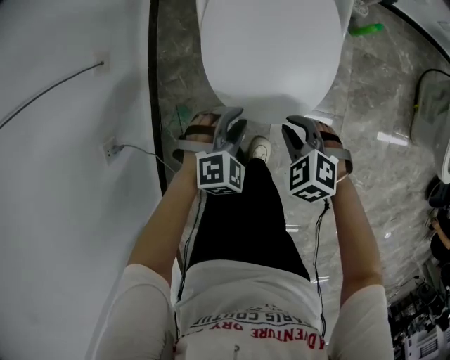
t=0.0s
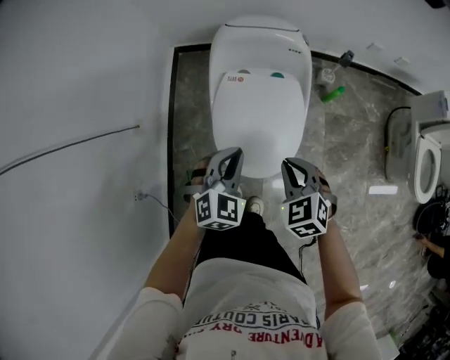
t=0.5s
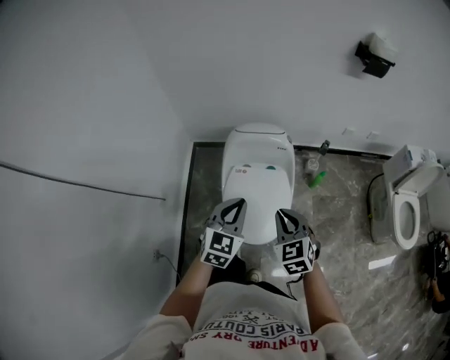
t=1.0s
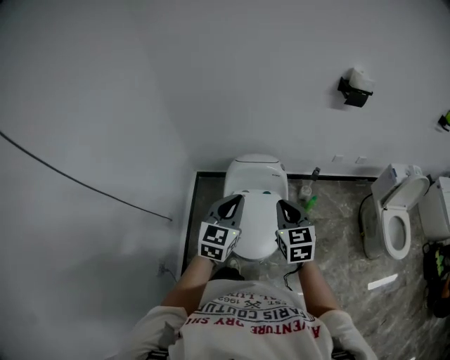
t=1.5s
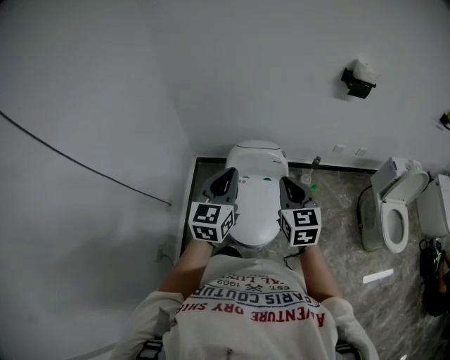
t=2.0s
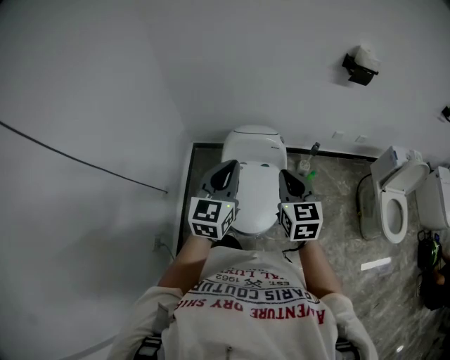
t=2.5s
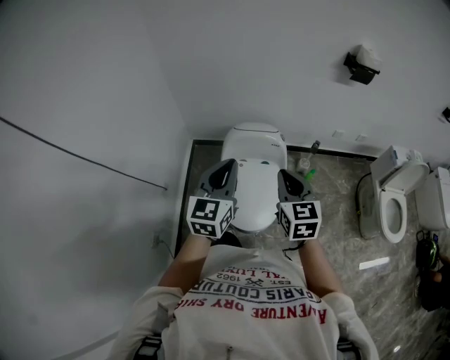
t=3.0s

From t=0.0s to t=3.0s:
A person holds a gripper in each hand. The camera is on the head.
From t=0.0s to t=1.5s: Both grippers move upward, roughly 60 cm. The left gripper points its fingers roughly 50 degrees further upward, and closes its fingers. Meanwhile the right gripper tips its fingers upward by some 40 degrees.

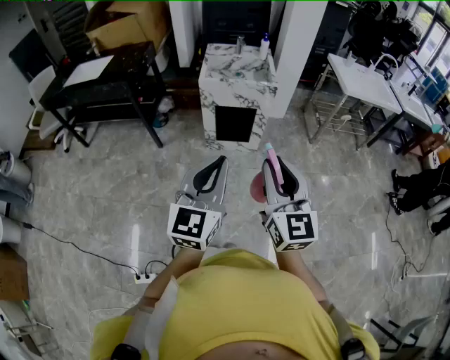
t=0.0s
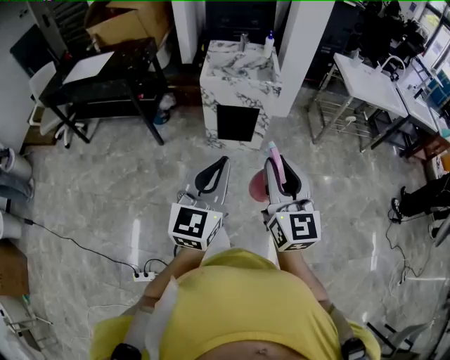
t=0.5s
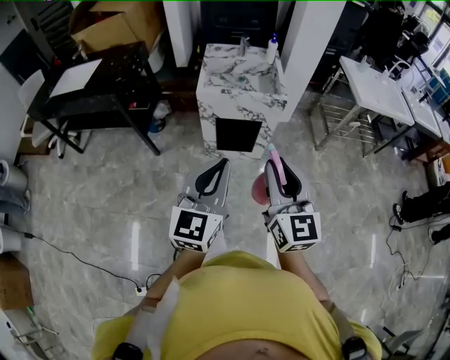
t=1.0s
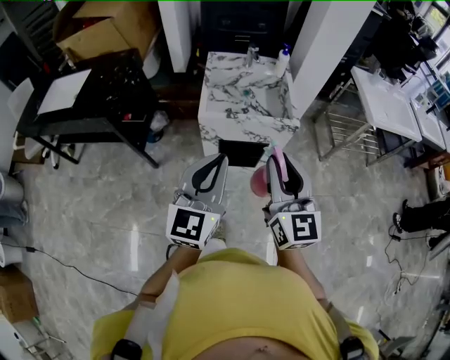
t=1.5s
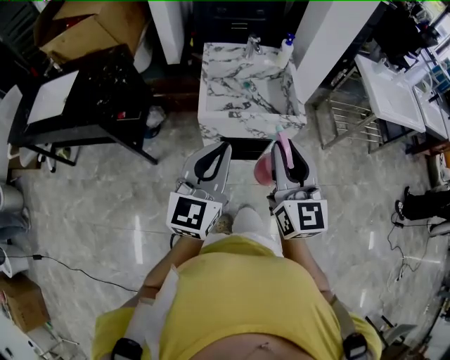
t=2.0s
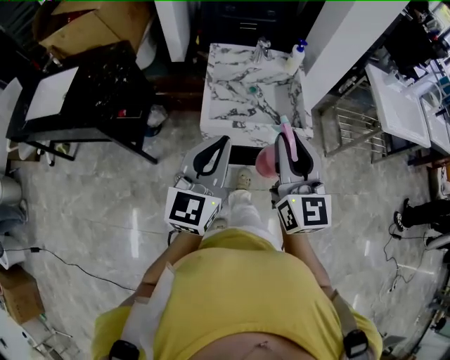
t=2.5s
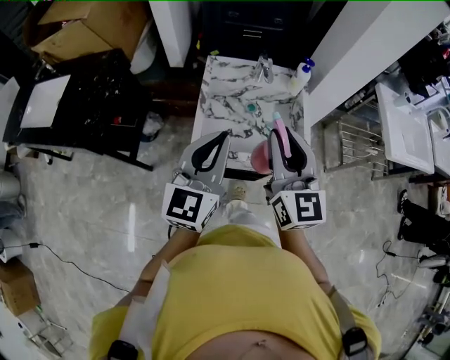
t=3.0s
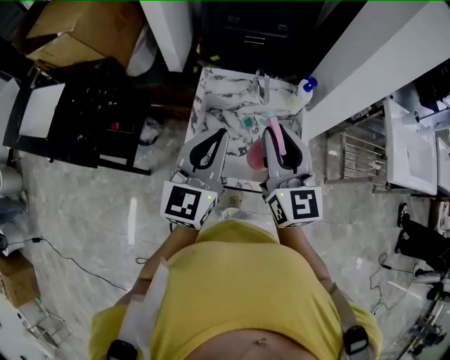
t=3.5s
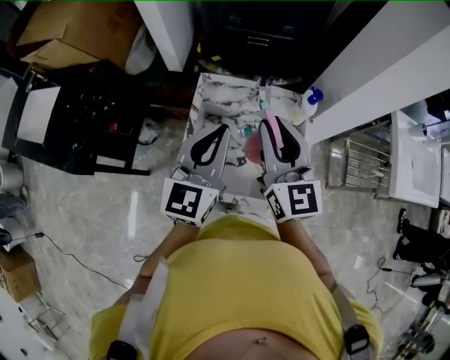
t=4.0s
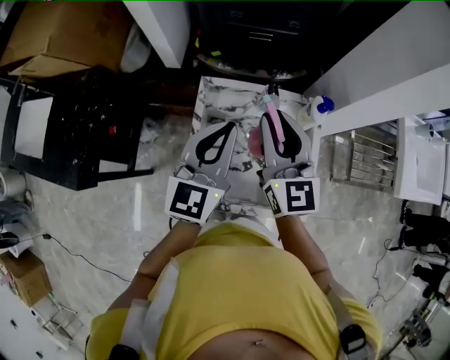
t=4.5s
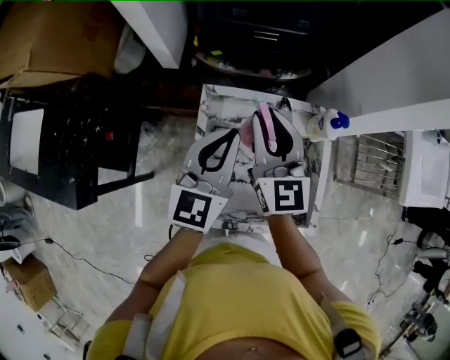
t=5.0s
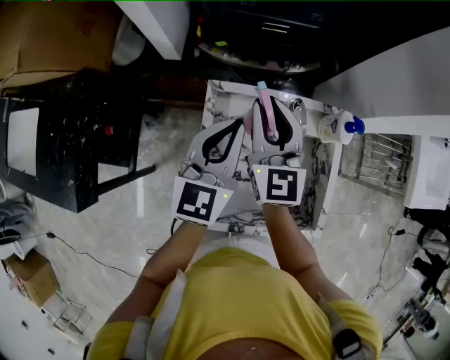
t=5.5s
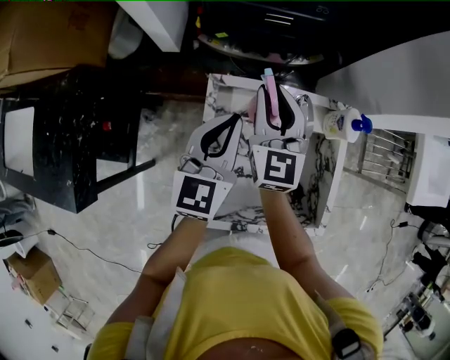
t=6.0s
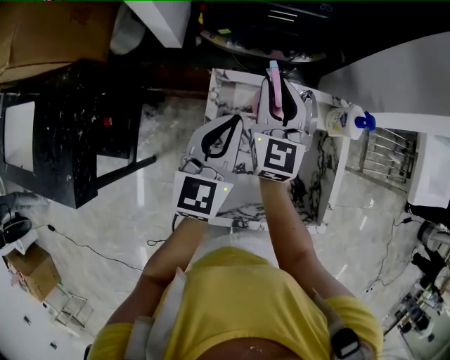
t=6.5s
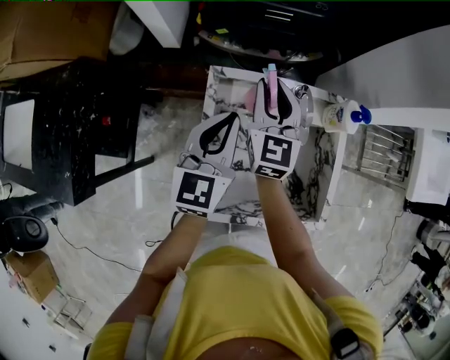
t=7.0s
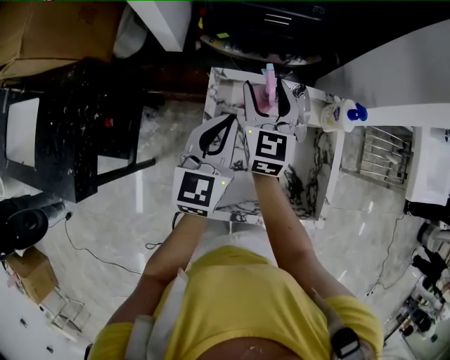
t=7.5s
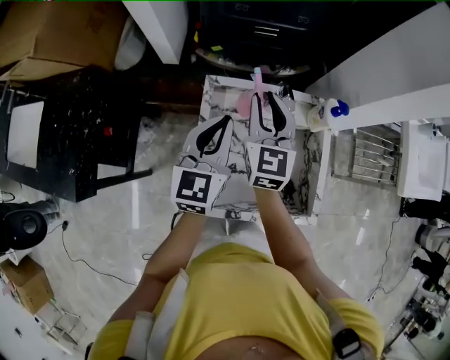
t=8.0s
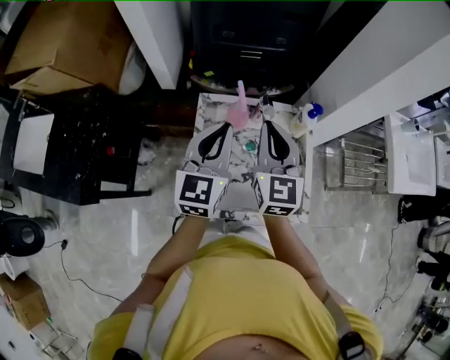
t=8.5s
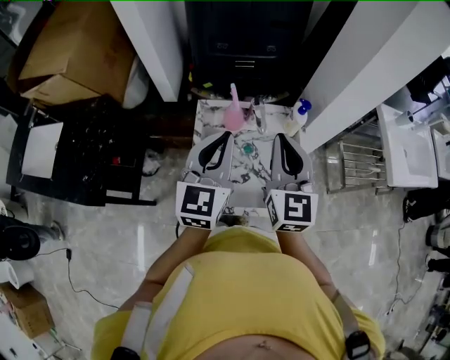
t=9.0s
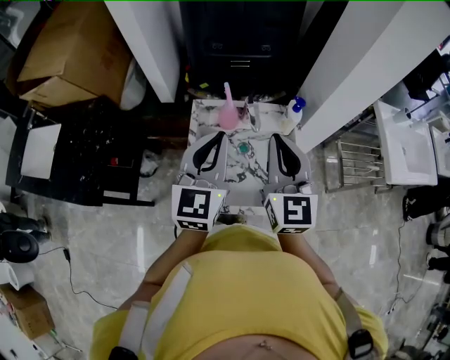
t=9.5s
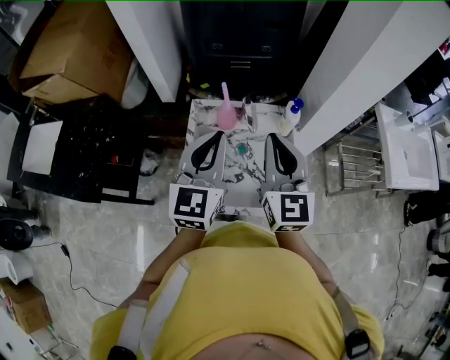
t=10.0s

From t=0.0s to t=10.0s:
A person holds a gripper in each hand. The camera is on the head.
From t=0.0s to t=2.0s: The two grippers travel together, forward, roughly 50 cm.
From t=2.0s to t=4.0s: The two grippers go some 40 cm forward.
From t=4.0s to t=6.0s: The grippers both shift forward, downward and to the left by roughly 25 cm.
From t=6.0s to t=8.0s: The two grippers go approximately 5 cm backward. The right gripper opens, then closes again.
From t=8.0s to t=10.0s: The right gripper moves backward, upward and to the right, about 25 cm, and closes its fingers; the left gripper is displaced upward, backward and to the right by roughly 20 cm.

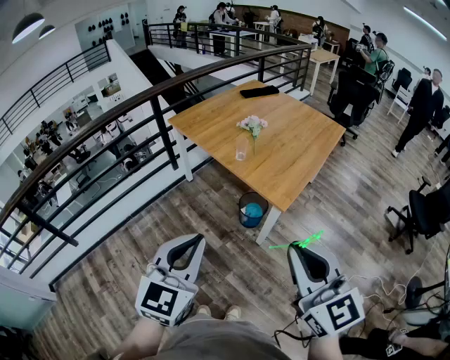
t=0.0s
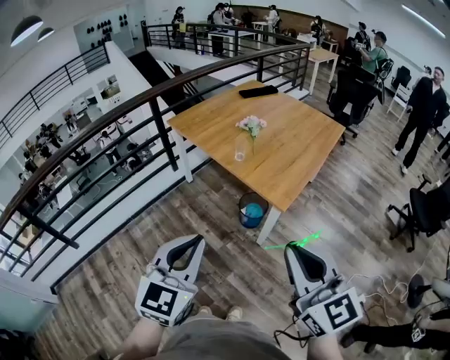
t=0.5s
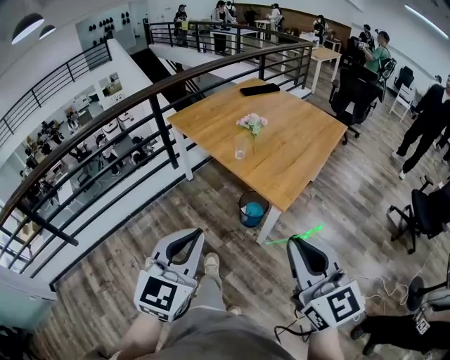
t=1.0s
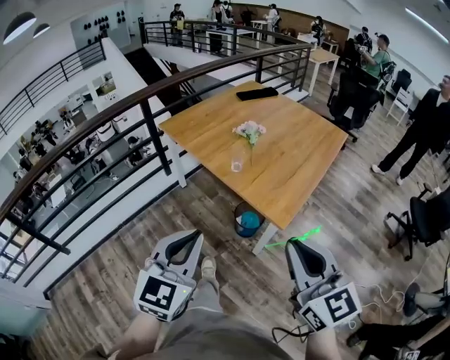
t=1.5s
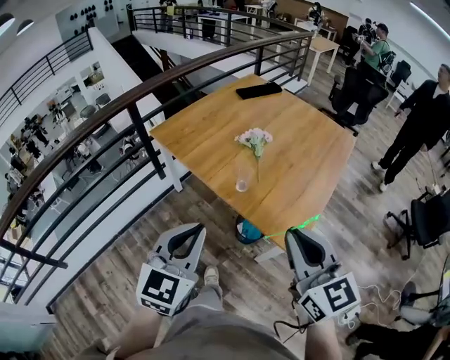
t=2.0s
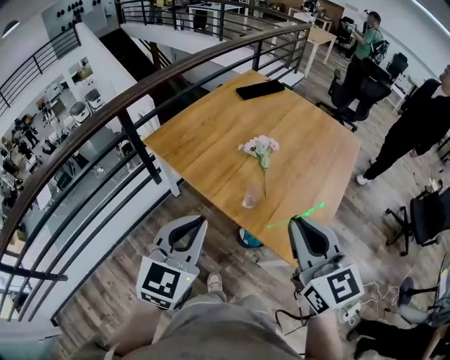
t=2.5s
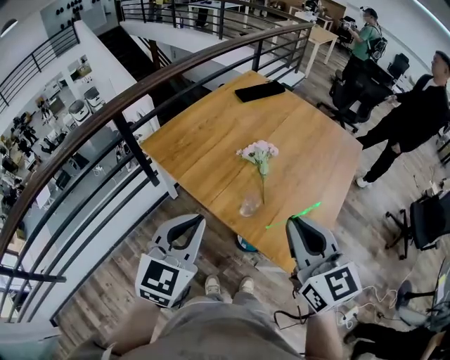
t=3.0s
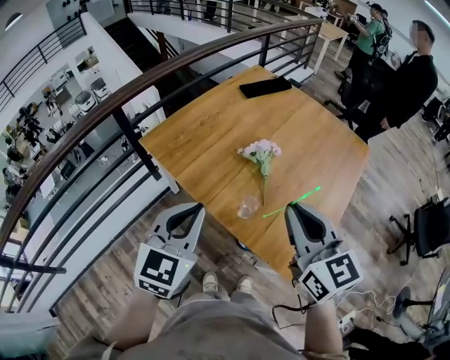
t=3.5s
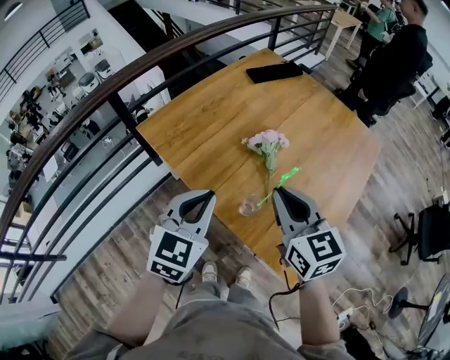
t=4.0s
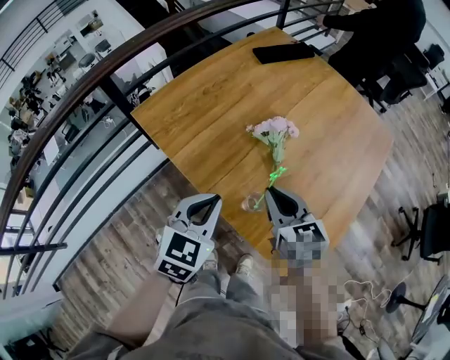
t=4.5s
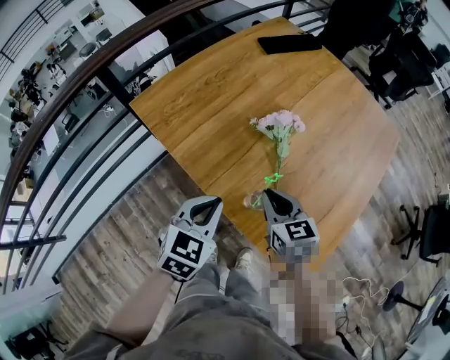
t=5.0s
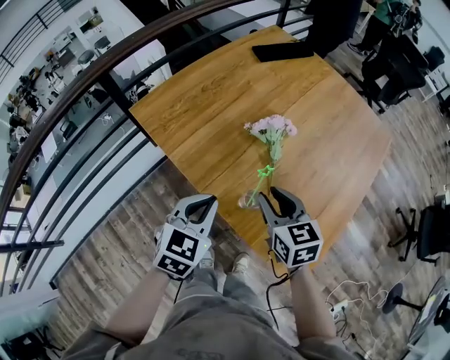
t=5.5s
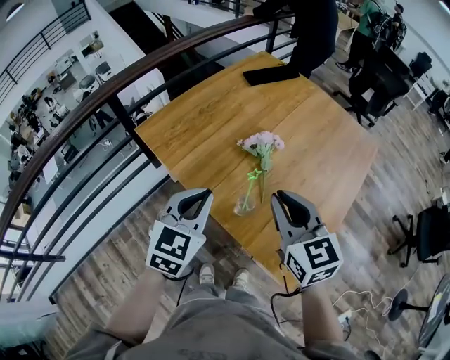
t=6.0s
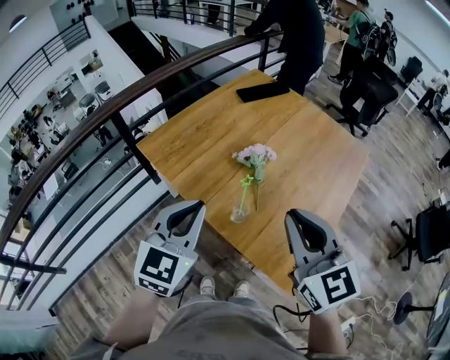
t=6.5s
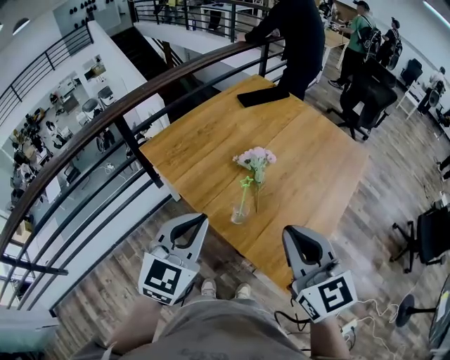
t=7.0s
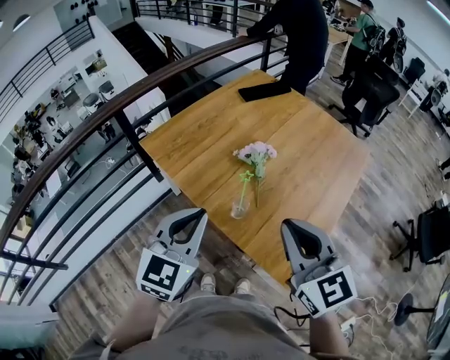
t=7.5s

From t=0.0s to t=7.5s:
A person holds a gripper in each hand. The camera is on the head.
From t=0.0s to t=2.0s: Both grippers travel together forward, roughly 30 cm.
From t=2.0s to t=4.0s: The two grippers go about 25 cm forward.
From t=4.0s to t=5.5s: Both grippers move downward, about 10 cm. The right gripper opens its fingers.
From t=5.5s to t=7.5s: The grippers both shift upward and backward by approximately 20 cm. The left gripper rotates about 20 degrees; the right gripper swivels roughly 30 degrees, and closes up.

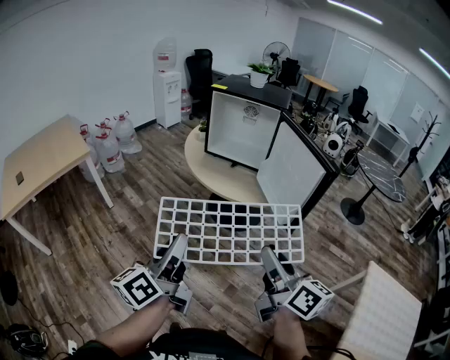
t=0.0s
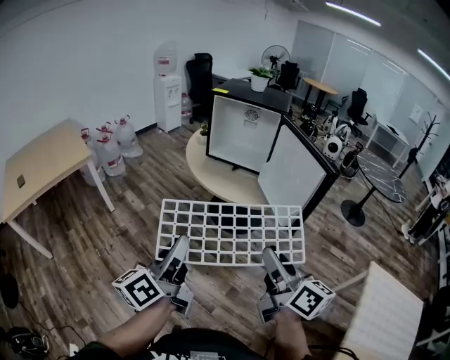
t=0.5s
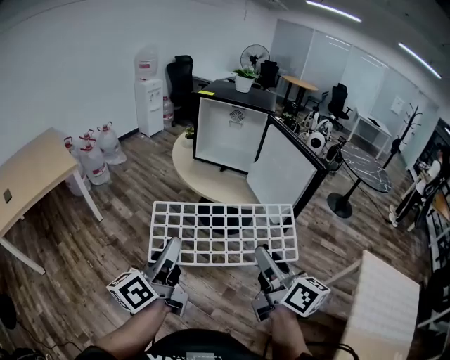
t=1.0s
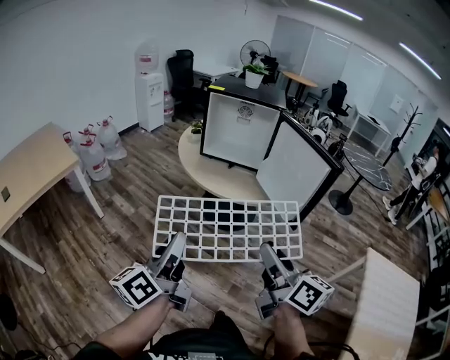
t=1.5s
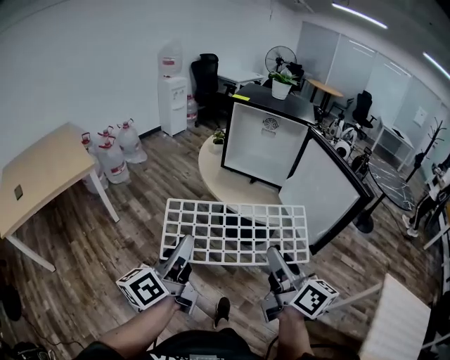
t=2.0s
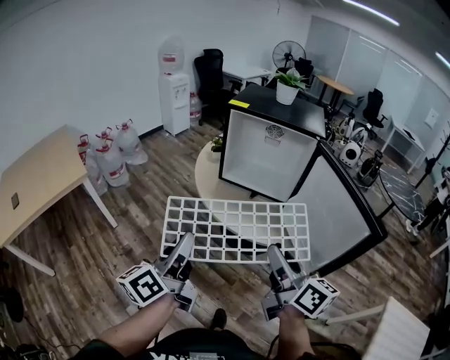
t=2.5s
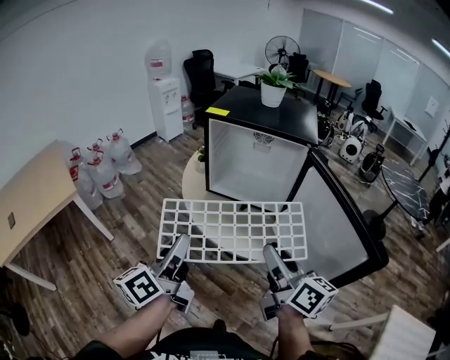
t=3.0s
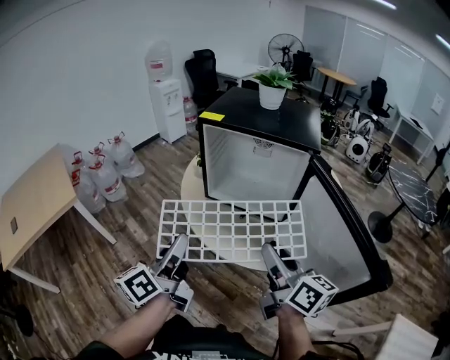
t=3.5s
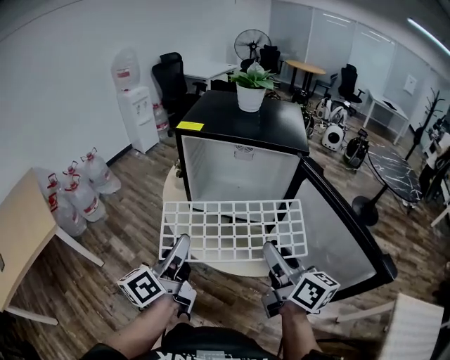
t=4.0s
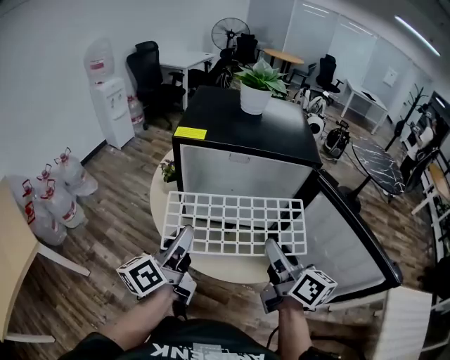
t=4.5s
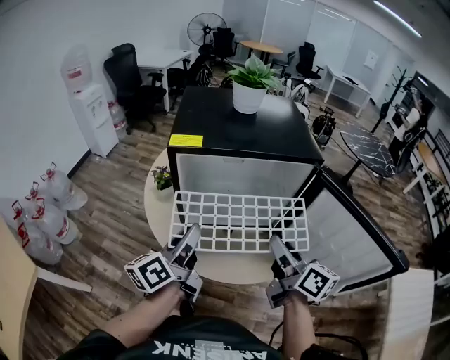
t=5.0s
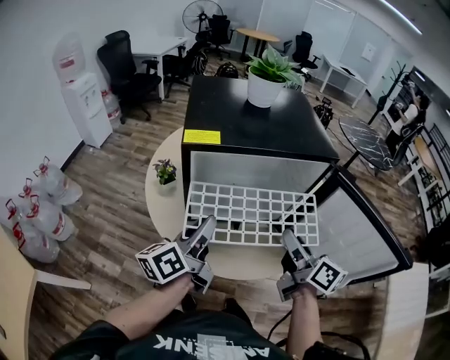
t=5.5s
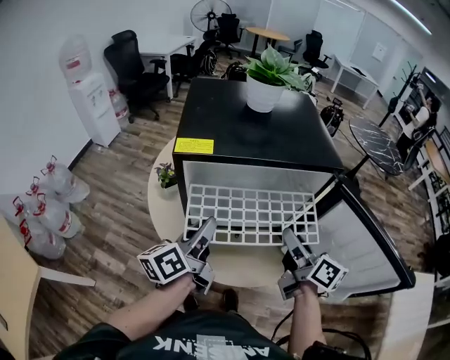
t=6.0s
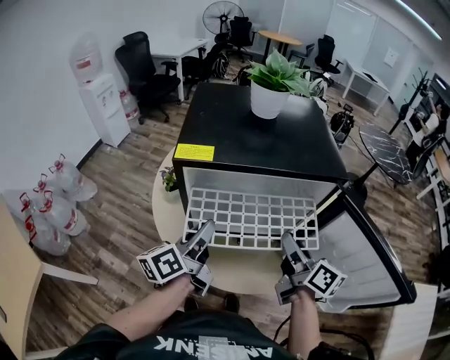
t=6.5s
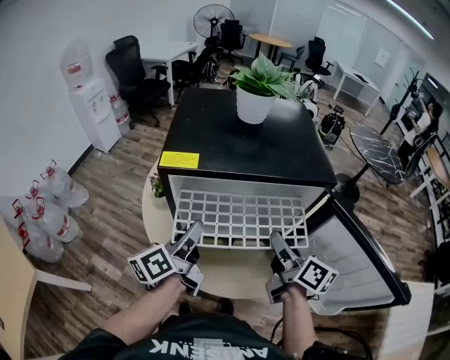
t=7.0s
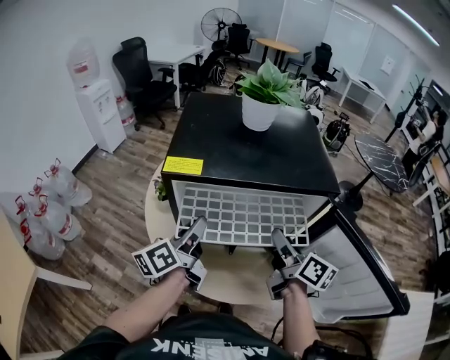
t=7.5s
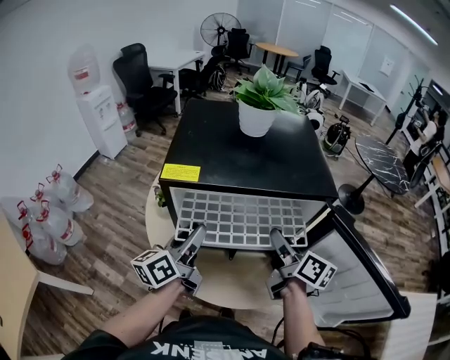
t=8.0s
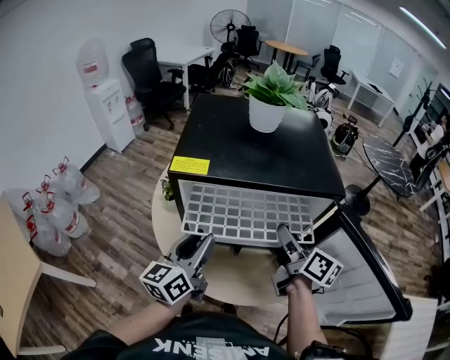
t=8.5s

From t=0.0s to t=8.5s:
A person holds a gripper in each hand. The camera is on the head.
From t=0.0s to t=2.0s: Both grippers travel together forward and to the left, about 15 cm.
From t=2.0s to t=4.0s: The grippers both shift forward by some 35 cm.
From t=4.0s to t=6.5s: The right gripper travels forward and downward by approximately 20 cm, and rotates roughly 30 degrees. Meanwhile the left gripper heads forward, covering about 20 cm, and turns by some 20 degrees.
From t=6.5s to t=8.5s: The left gripper turns by roughly 20 degrees, while the right gripper shifts some 5 cm forward.
